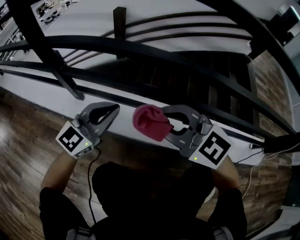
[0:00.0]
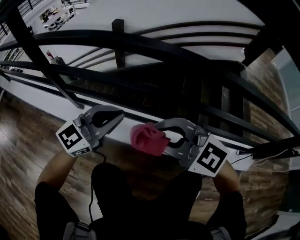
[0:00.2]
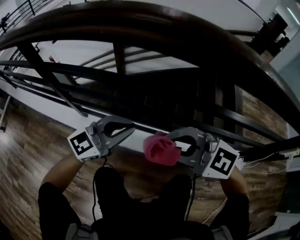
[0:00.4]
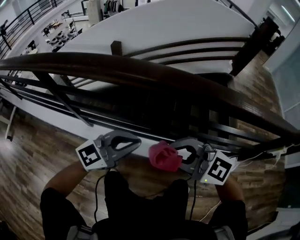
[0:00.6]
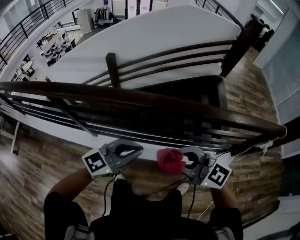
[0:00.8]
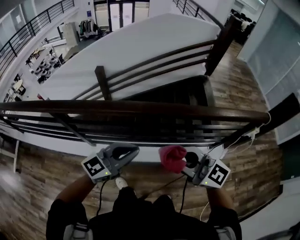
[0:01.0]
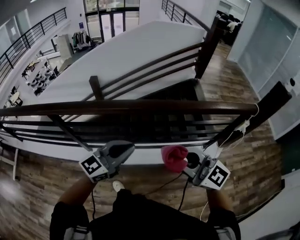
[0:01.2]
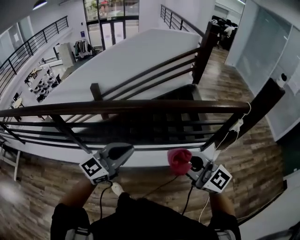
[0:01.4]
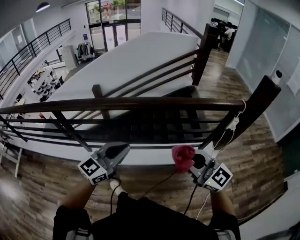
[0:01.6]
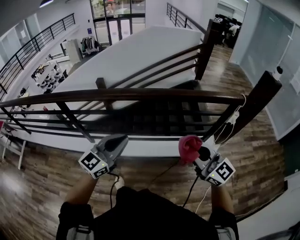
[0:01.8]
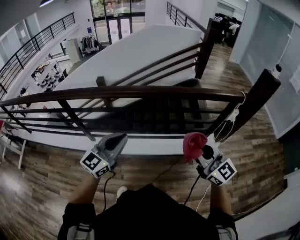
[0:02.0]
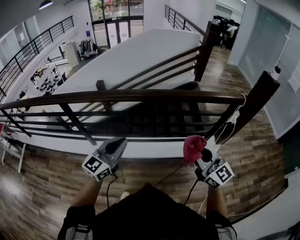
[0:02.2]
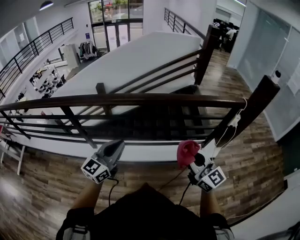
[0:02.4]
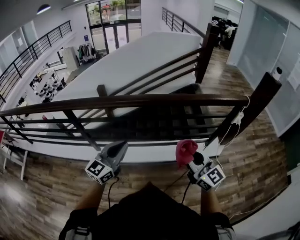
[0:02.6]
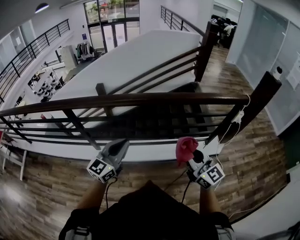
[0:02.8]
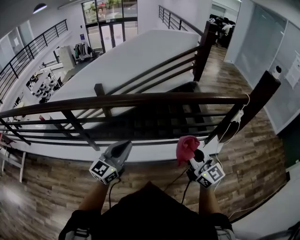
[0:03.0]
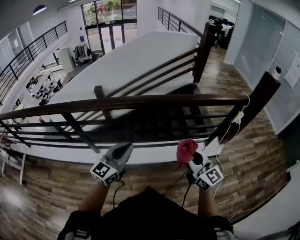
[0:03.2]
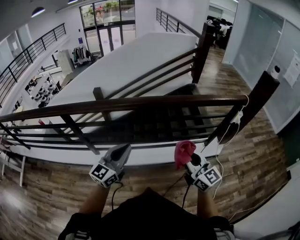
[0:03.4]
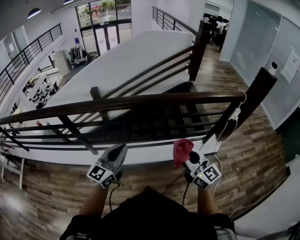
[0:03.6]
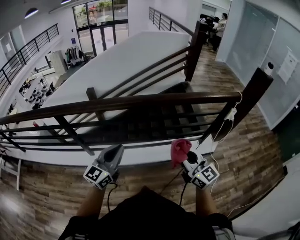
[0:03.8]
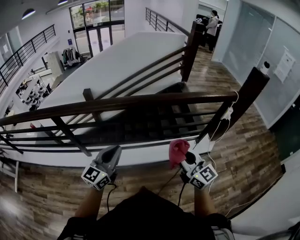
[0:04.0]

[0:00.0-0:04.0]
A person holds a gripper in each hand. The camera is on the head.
0.0 to 1.4 s: Both grippers move upward, some 50 cm. The right gripper swivels about 30 degrees. The left gripper rotates some 20 degrees.
1.4 to 2.6 s: The right gripper goes to the right and returns, roughly 10 cm each way, and swivels approximately 20 degrees, while the left gripper travels to the left by approximately 5 cm.
2.6 to 4.0 s: There are only small adjustments of the grippers.

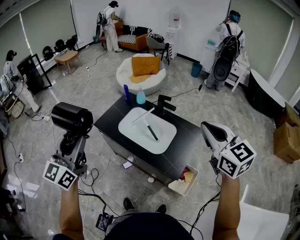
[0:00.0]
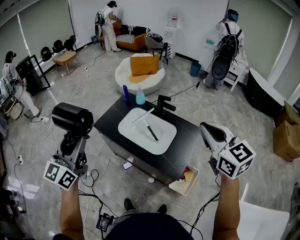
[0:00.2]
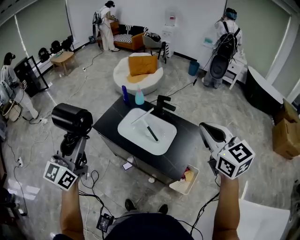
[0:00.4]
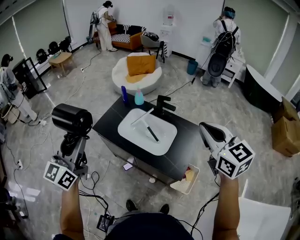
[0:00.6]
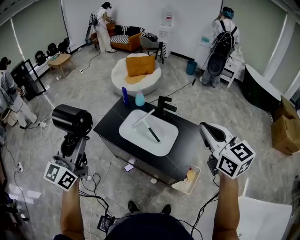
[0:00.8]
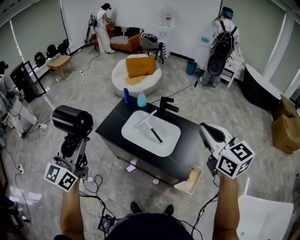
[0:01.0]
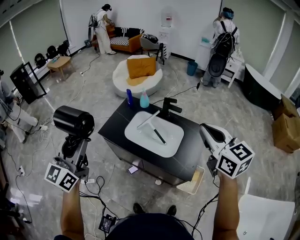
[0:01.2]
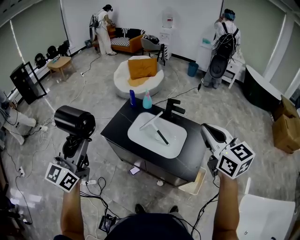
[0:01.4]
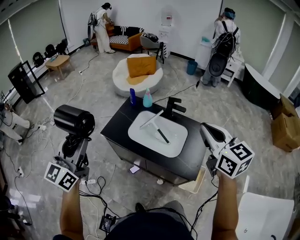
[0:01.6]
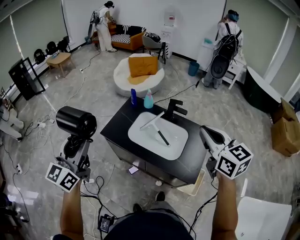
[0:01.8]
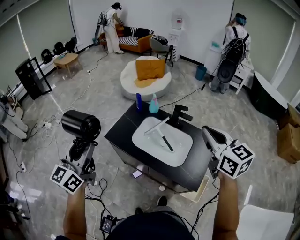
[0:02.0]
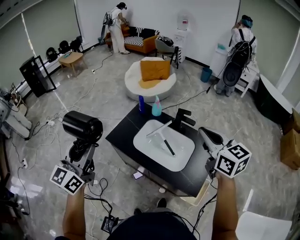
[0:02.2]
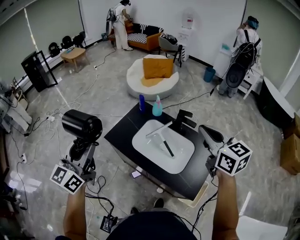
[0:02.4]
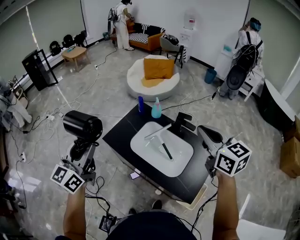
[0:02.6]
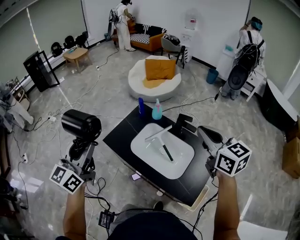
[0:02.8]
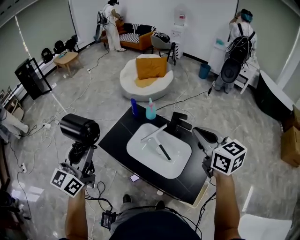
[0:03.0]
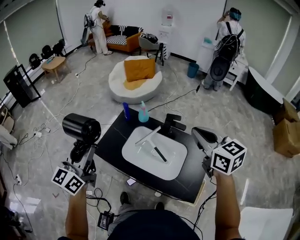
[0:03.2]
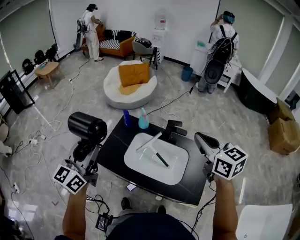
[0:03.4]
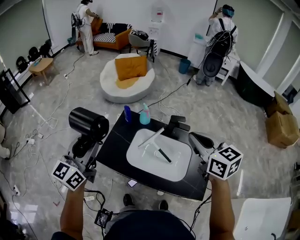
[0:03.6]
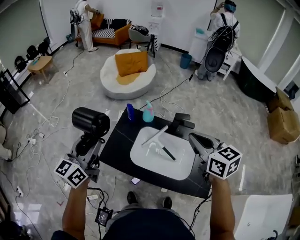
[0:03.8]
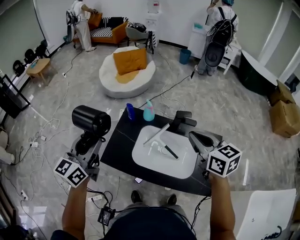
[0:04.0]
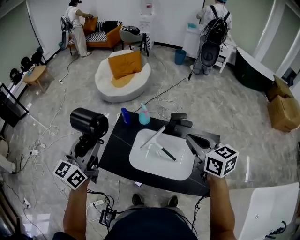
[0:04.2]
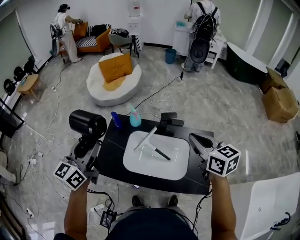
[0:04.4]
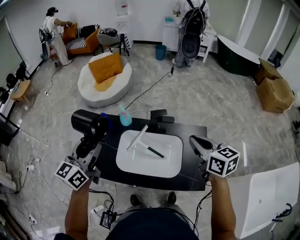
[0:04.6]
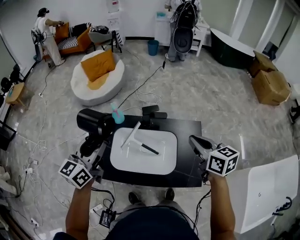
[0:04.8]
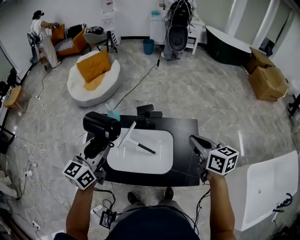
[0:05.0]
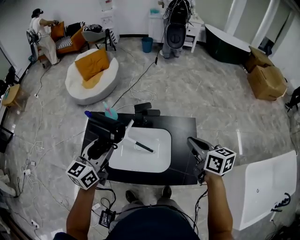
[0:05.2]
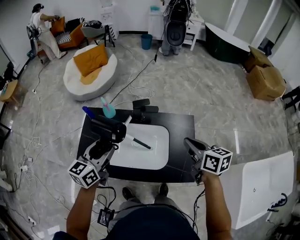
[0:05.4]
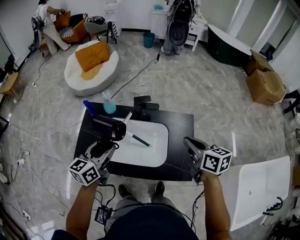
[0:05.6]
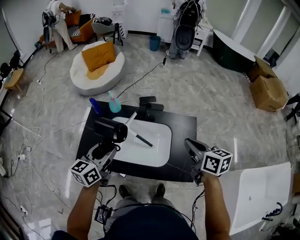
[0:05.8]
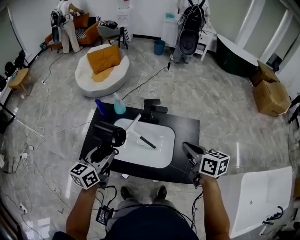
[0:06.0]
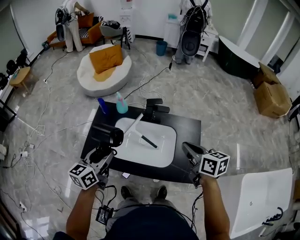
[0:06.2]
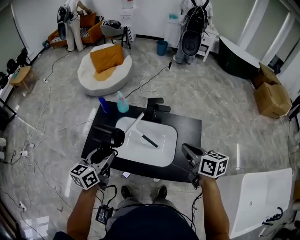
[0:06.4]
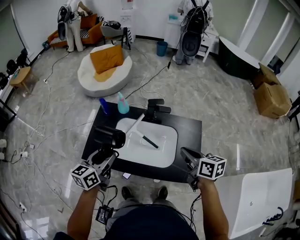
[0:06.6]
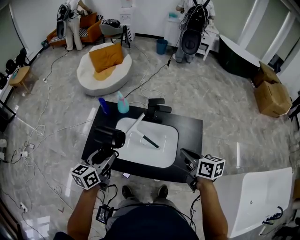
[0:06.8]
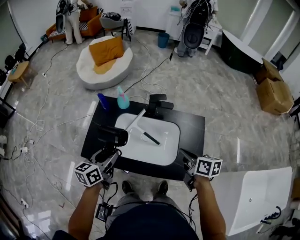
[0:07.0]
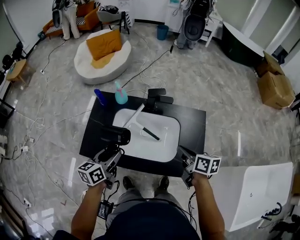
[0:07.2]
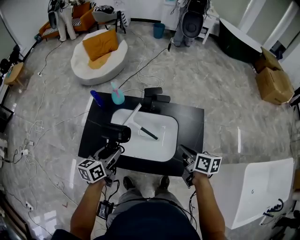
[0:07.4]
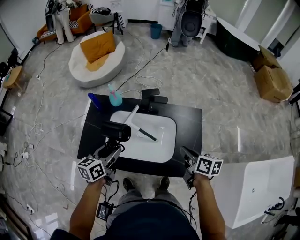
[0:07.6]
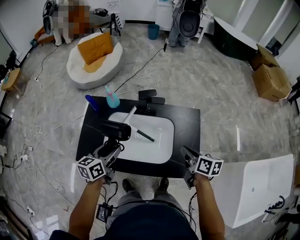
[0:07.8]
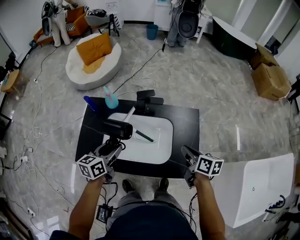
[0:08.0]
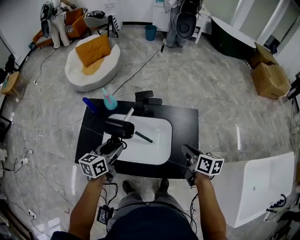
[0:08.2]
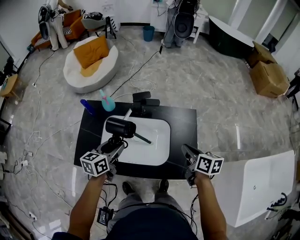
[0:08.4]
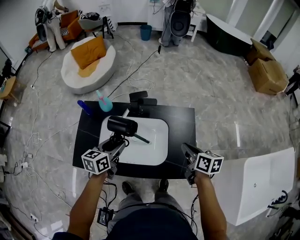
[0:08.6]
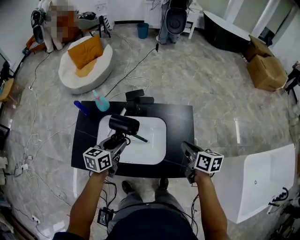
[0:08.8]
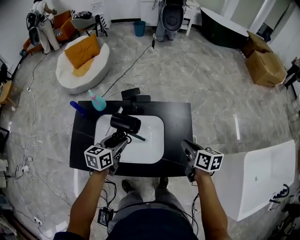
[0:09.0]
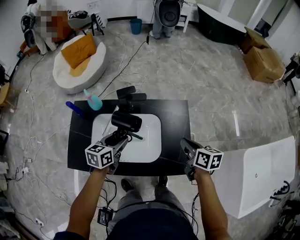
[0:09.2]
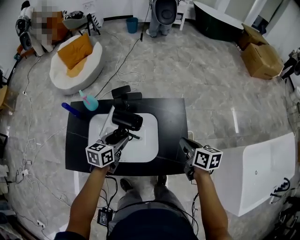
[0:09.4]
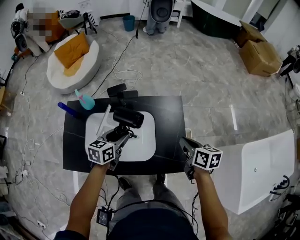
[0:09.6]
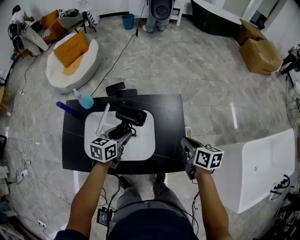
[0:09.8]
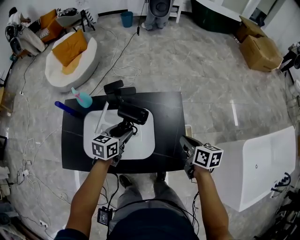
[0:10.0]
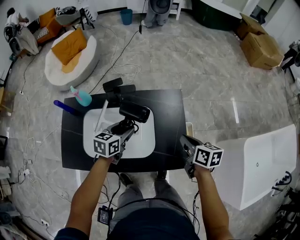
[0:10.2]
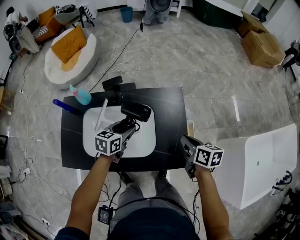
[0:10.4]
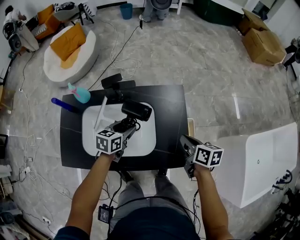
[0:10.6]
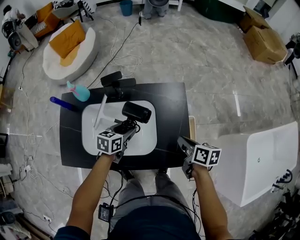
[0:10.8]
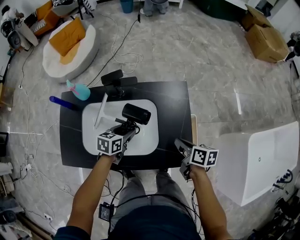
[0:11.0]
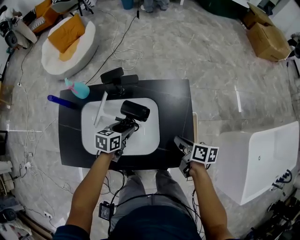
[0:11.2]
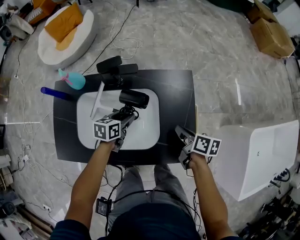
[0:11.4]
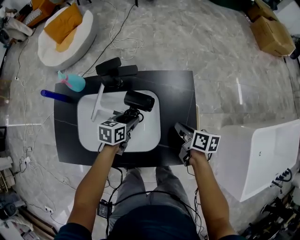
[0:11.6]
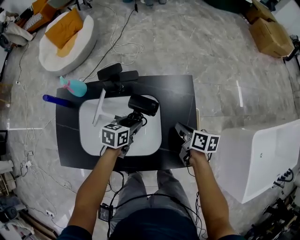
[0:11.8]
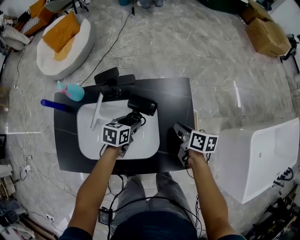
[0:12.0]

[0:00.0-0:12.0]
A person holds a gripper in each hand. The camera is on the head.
0.0 to 1.6 s: The two grippers go about 15 cm to the left and forward.
1.6 to 3.0 s: The right gripper shifts about 15 cm forward; the left gripper heads forward and to the right, covering some 10 cm.
3.0 to 4.4 s: The right gripper heads downward, covering about 5 cm, goes to the left and returns, about 10 cm each way, and swivels about 20 degrees. Meanwhile the left gripper heads forward, covering roughly 20 cm, and turns by some 30 degrees.
4.4 to 6.0 s: Both grippers move downward, to the right and backward, roughly 15 cm.
6.0 to 7.6 s: Both grippers move downward, about 10 cm.
7.6 to 9.0 s: The left gripper is displaced to the right and forward by approximately 15 cm. Meanwhile the right gripper heads to the right, covering approximately 10 cm.
9.0 to 10.4 s: The left gripper heads to the right and downward, covering some 10 cm. The right gripper heads downward and to the right, covering roughly 10 cm.
10.4 to 12.0 s: The left gripper heads downward, covering roughly 10 cm. The right gripper heads downward and forward, covering about 10 cm.

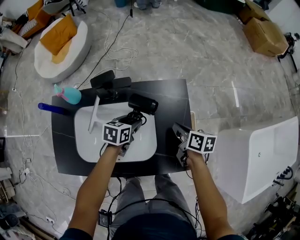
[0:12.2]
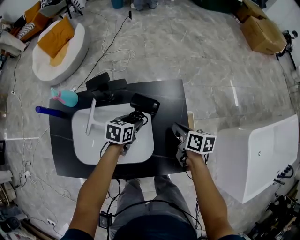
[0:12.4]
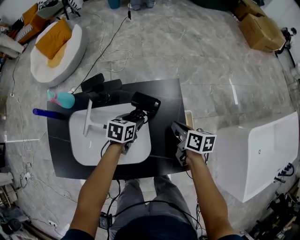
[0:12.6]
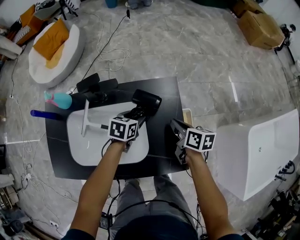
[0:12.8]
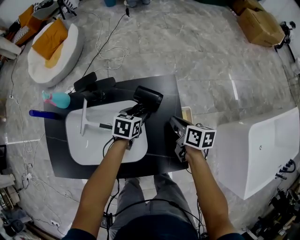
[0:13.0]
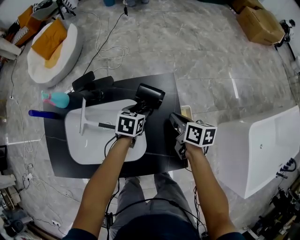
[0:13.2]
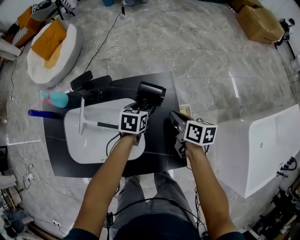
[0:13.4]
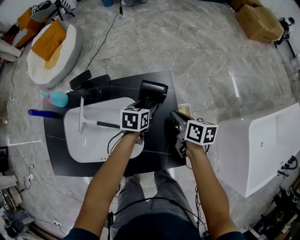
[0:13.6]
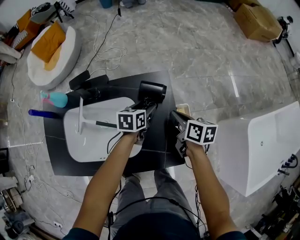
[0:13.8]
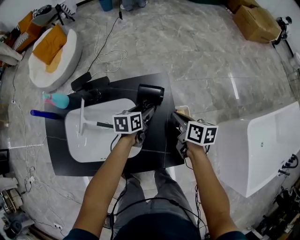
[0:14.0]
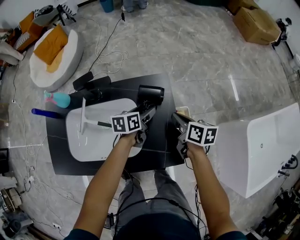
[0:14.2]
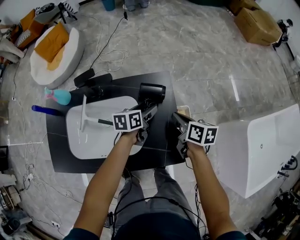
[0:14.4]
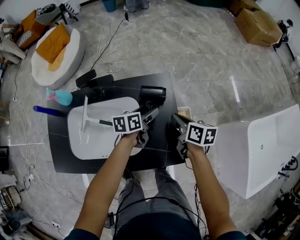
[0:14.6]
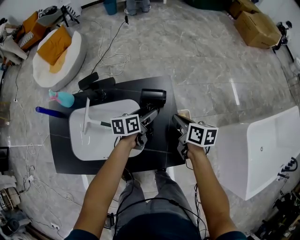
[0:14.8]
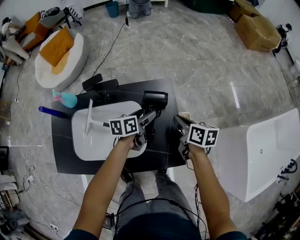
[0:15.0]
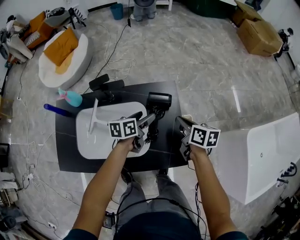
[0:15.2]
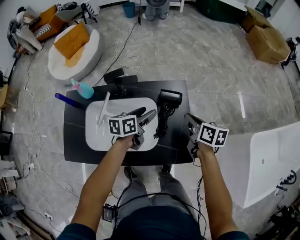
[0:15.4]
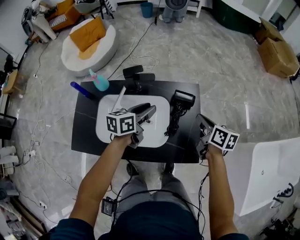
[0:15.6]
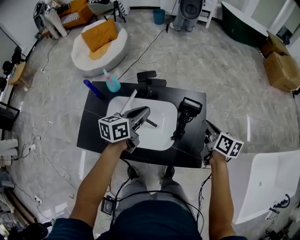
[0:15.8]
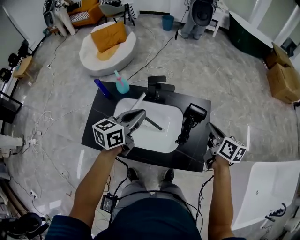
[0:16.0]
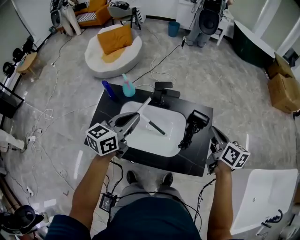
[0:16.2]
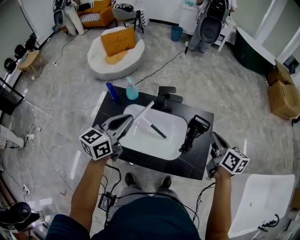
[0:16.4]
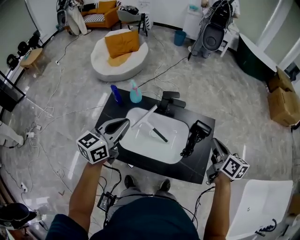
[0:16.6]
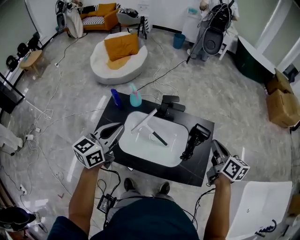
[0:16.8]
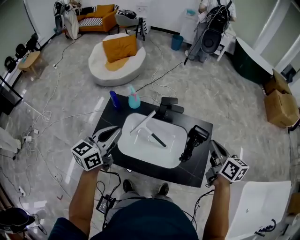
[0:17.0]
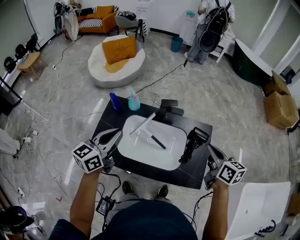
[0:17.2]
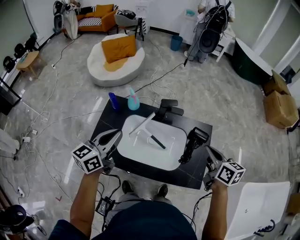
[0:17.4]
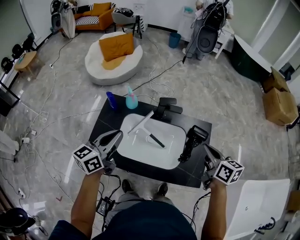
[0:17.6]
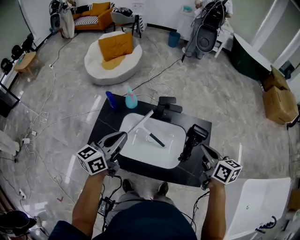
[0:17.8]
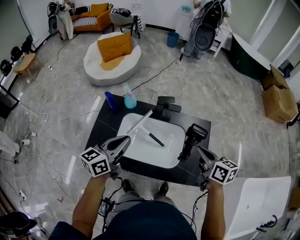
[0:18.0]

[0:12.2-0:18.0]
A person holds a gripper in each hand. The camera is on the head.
12.2 to 13.6 s: The right gripper goes roughly 5 cm to the right, while the left gripper goes about 15 cm to the right.
13.6 to 15.0 s: The left gripper moves upward, approximately 5 cm, and rotates roughly 20 degrees.
15.0 to 16.6 s: The right gripper heads upward and to the left, covering approximately 25 cm. The left gripper heads to the left, upward and backward, covering some 50 cm, changes its angle by roughly 40 degrees, and closes.
16.6 to 18.0 s: The right gripper goes about 5 cm to the left.

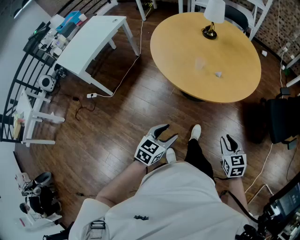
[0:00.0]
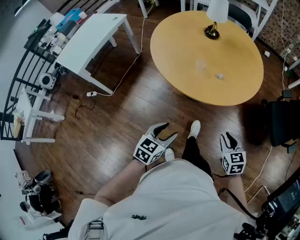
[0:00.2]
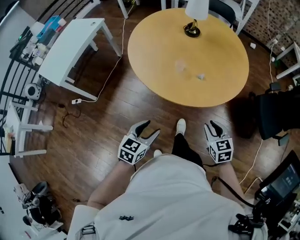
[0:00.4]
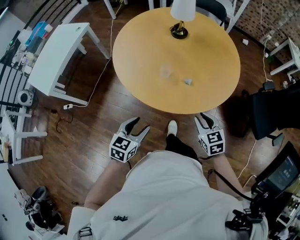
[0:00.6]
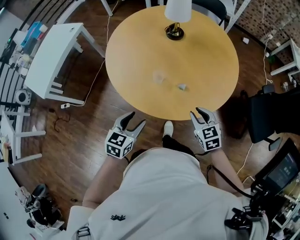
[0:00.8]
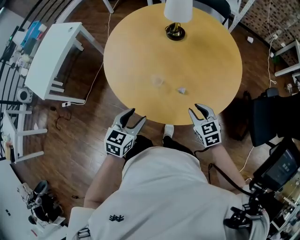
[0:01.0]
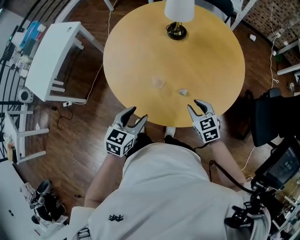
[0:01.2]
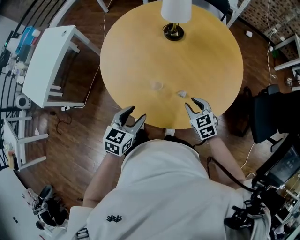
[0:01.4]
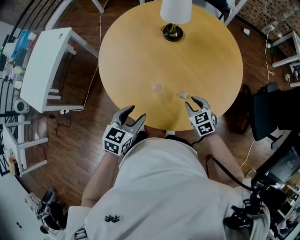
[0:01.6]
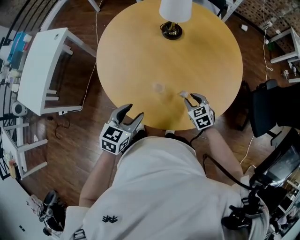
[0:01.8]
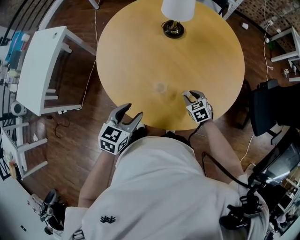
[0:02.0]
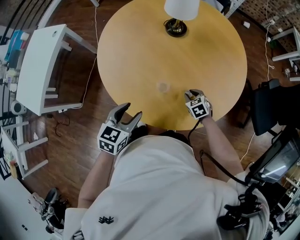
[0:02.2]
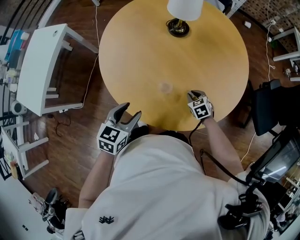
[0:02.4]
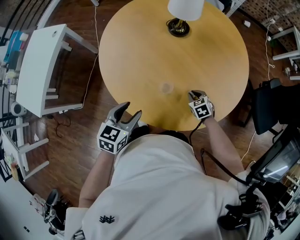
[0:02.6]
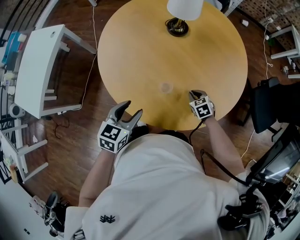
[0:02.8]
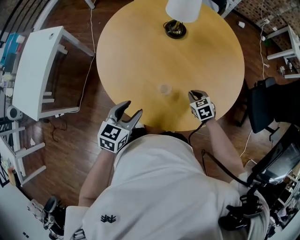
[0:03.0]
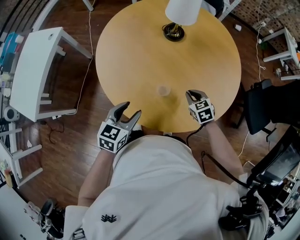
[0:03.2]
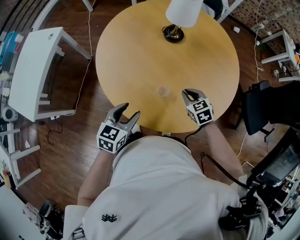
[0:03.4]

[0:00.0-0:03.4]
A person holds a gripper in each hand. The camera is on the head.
0.0 to 1.6 s: The grippers both shift forward by roughly 40 cm.
1.6 to 3.4 s: The left gripper shifts about 5 cm to the left. The right gripper goes about 10 cm to the left and forward, reaches about 10 cm downward, then returns, and closes.
